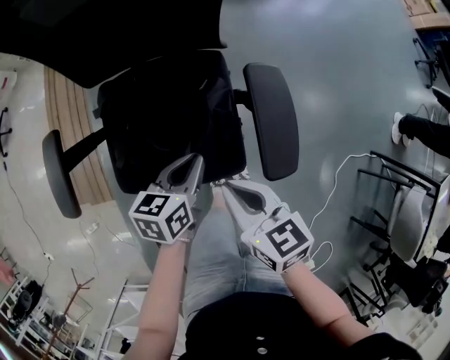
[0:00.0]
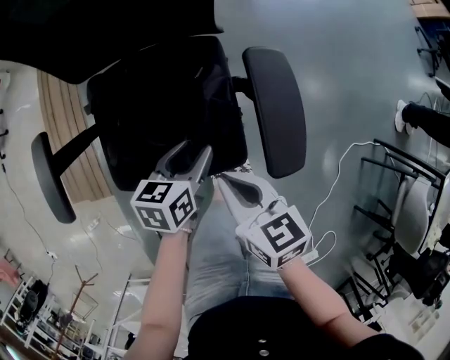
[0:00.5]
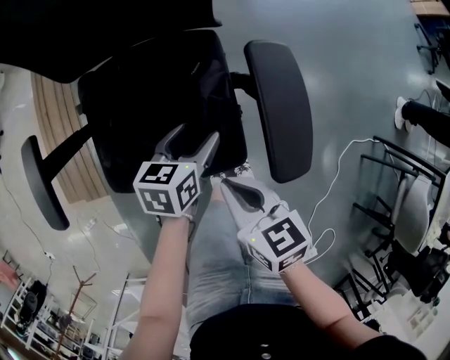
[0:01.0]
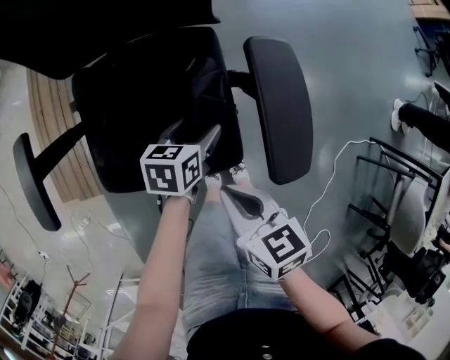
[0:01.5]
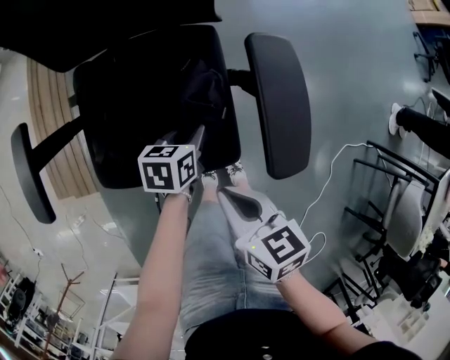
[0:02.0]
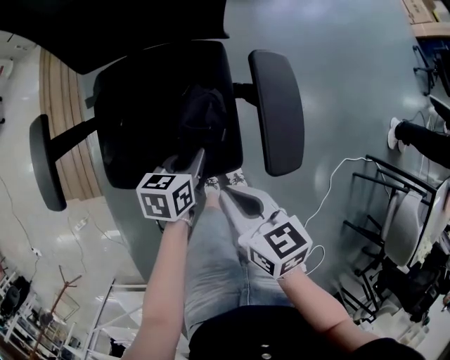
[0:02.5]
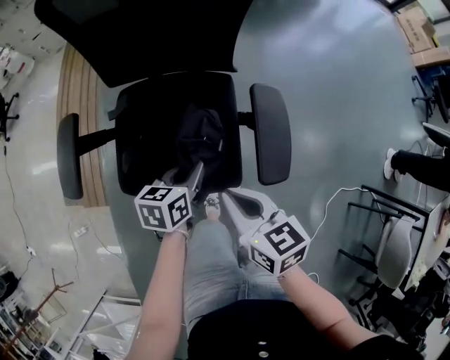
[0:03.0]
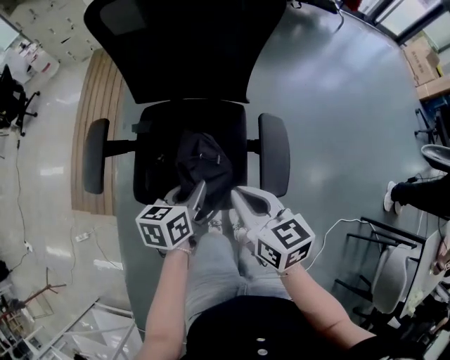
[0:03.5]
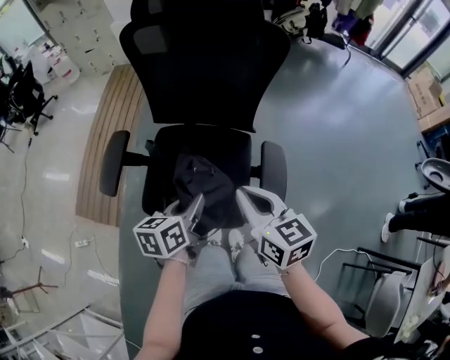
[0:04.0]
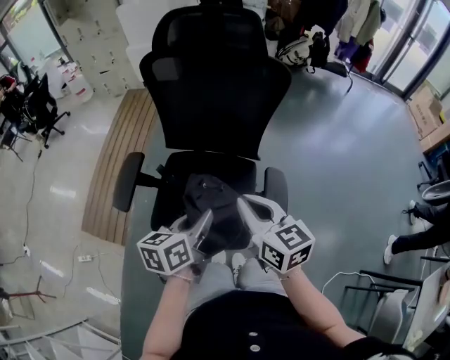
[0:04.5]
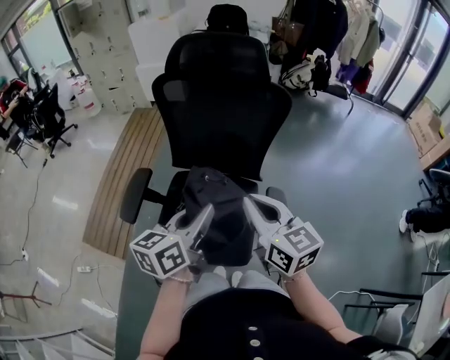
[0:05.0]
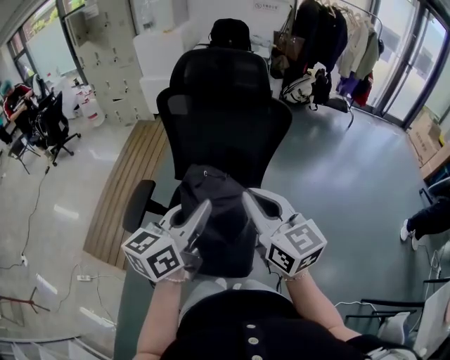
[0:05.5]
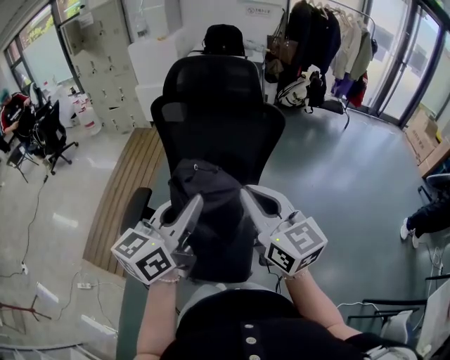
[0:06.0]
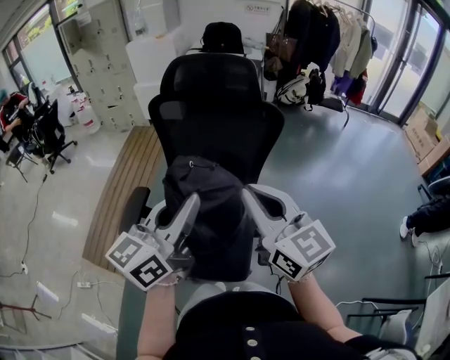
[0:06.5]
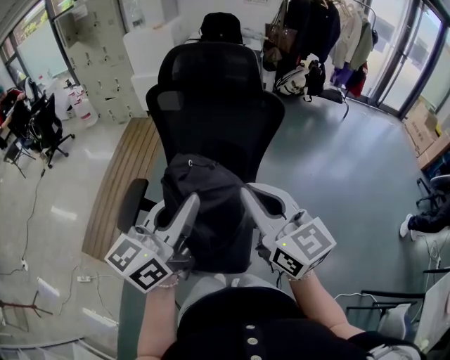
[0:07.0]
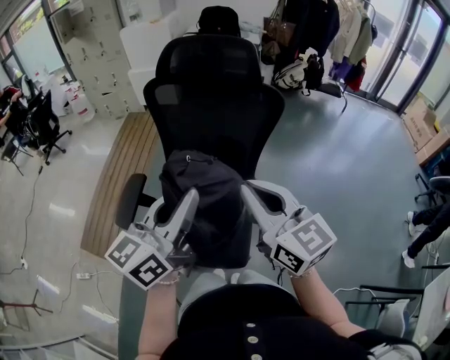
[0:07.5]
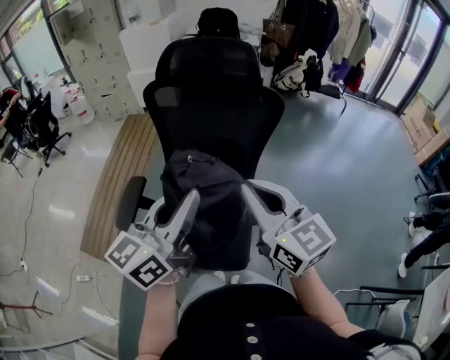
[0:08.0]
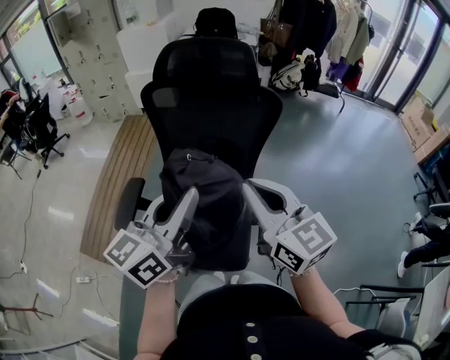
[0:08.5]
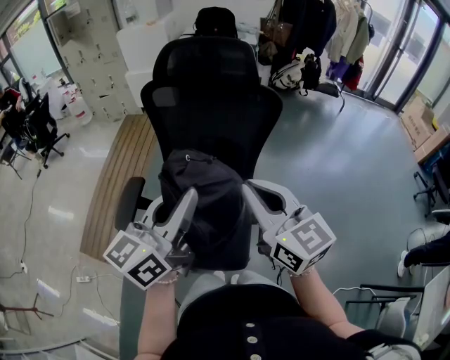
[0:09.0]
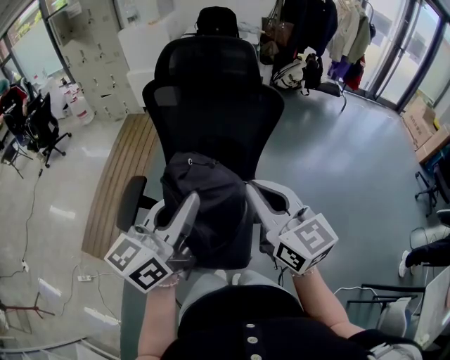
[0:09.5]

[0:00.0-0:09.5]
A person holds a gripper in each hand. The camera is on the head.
0:00.0 to 0:02.0: The right gripper travels downward by approximately 10 cm. Meanwhile the left gripper travels downward by approximately 15 cm, and opens, then closes once more.
0:02.0 to 0:04.0: Both grippers move upward, about 25 cm. The right gripper changes its angle by some 30 degrees; the left gripper changes its angle by roughly 30 degrees.
0:04.0 to 0:05.5: The two grippers go about 20 cm upward. The left gripper turns by roughly 30 degrees; the right gripper changes its angle by about 20 degrees.
0:07.5 to 0:09.5: The two grippers keep their place.

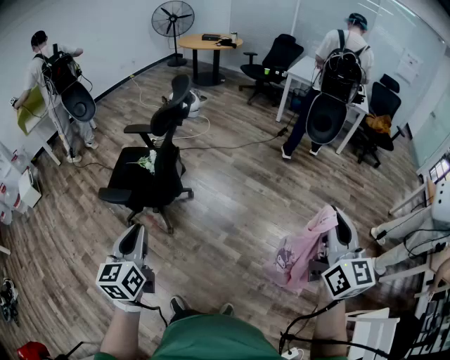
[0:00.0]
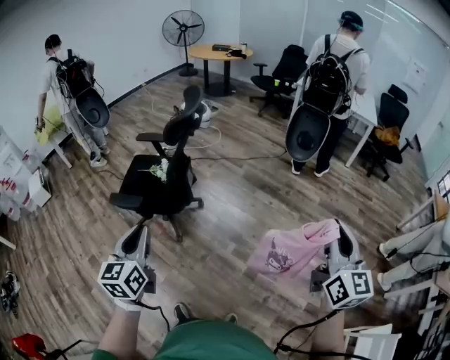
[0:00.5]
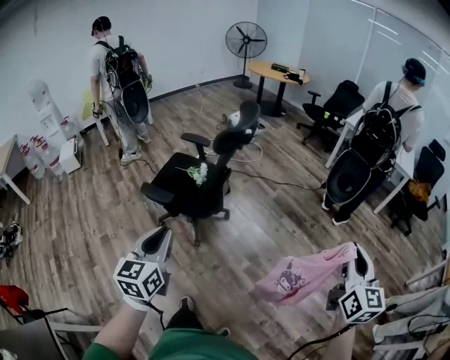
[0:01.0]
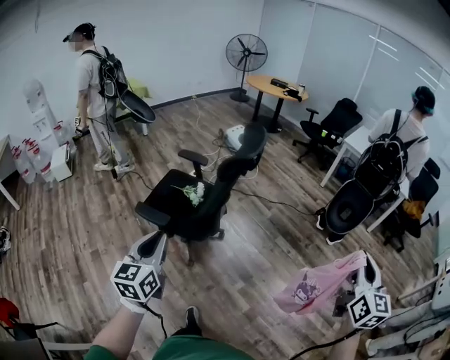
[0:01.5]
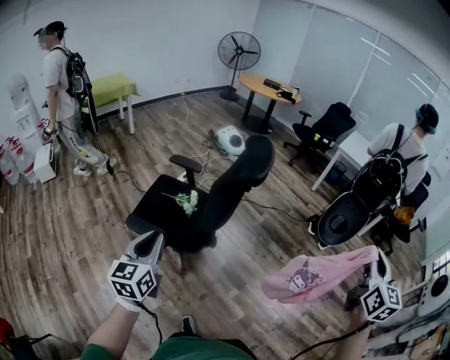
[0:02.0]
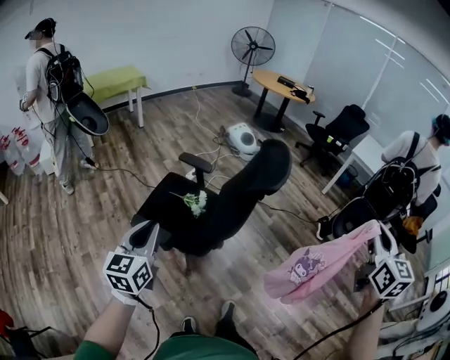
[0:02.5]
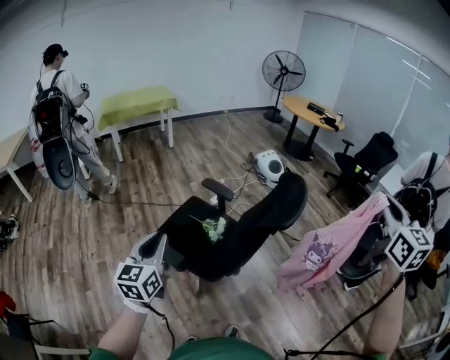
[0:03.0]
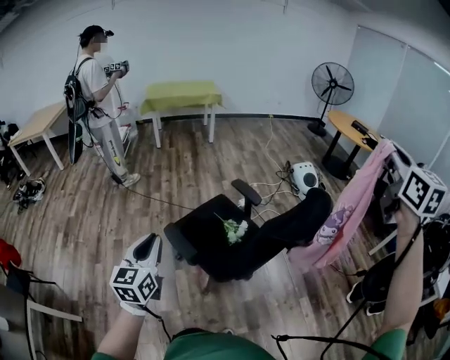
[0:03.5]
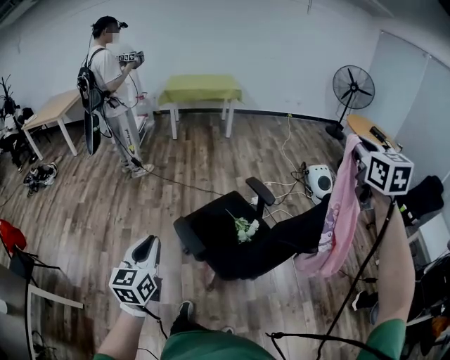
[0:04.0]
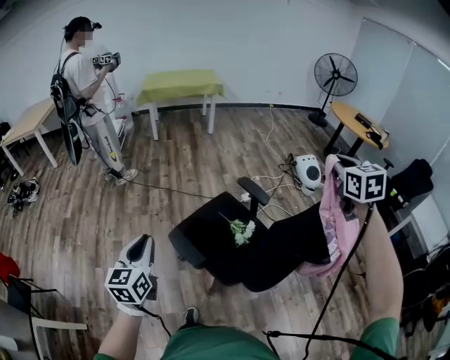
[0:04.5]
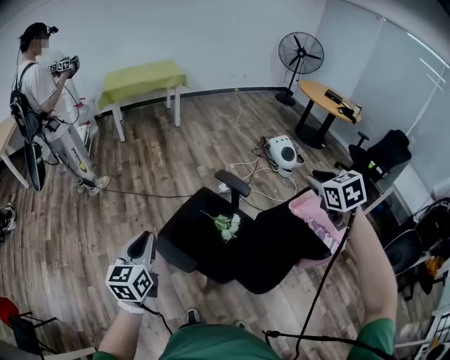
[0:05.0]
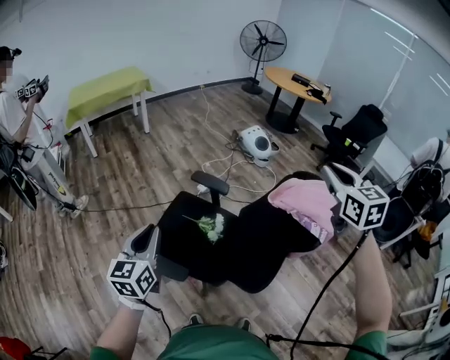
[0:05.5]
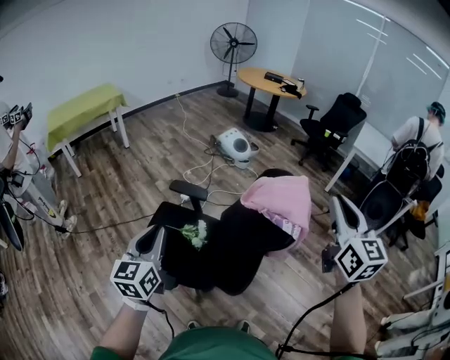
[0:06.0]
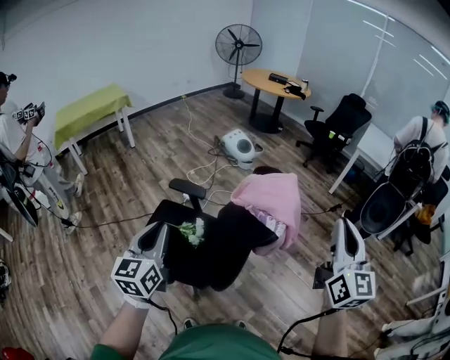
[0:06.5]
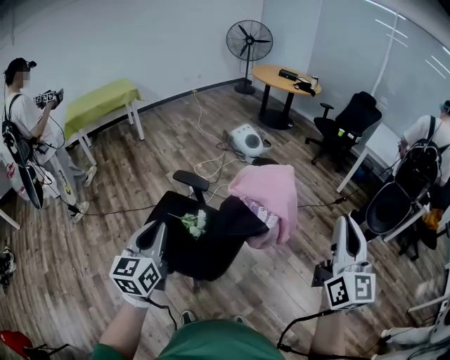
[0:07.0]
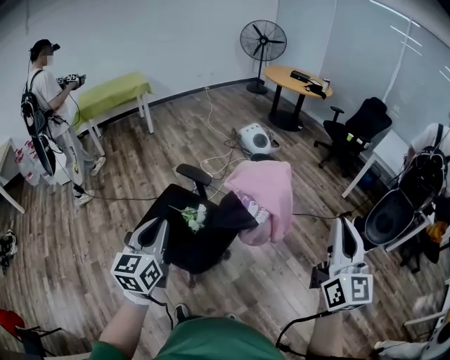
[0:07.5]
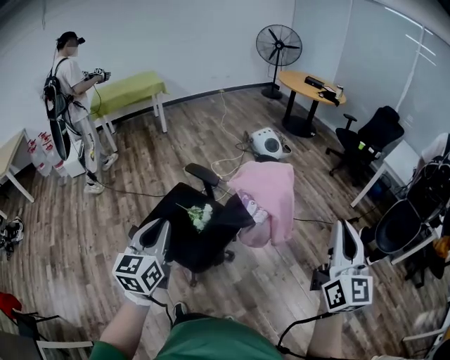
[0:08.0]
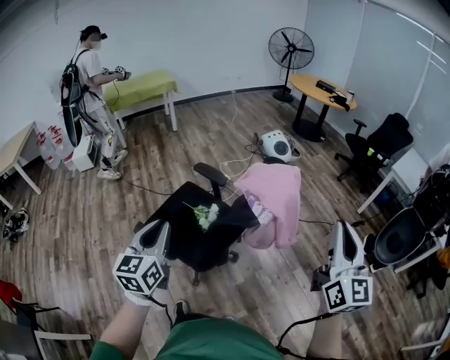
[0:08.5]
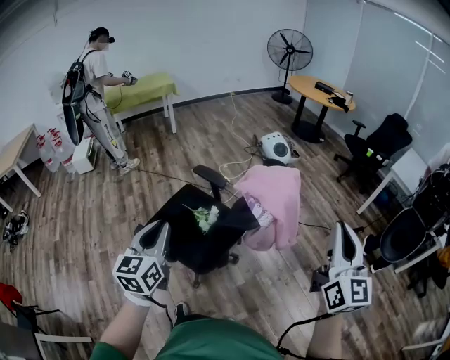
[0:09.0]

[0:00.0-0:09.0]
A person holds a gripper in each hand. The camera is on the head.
0:00.0 to 0:02.0: The right gripper is displaced forward by approximately 25 cm; the left gripper moves to the left and forward, some 25 cm.
0:02.0 to 0:04.5: The right gripper goes upward and returns, roughly 20 cm each way, and rotates roughly 50 degrees. The left gripper shifts by approximately 20 cm, and swivels some 40 degrees.
0:04.5 to 0:07.0: The left gripper ends up approximately 25 cm from where it was, and swivels some 30 degrees. Meanwhile the right gripper goes downward and returns, about 10 cm each way, and points its fingers about 30 degrees further upward.
0:07.0 to 0:09.0: The left gripper heads backward, covering approximately 5 cm, while the right gripper changes place by about 5 cm.

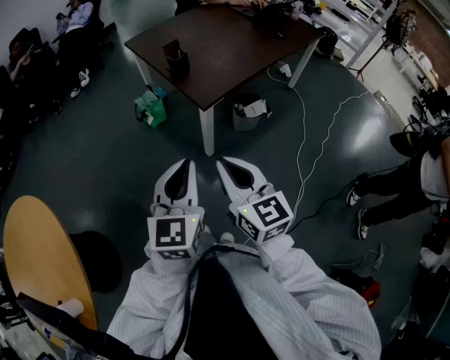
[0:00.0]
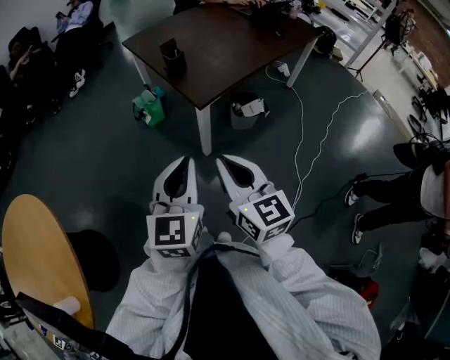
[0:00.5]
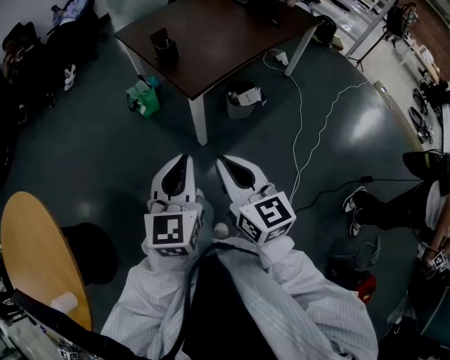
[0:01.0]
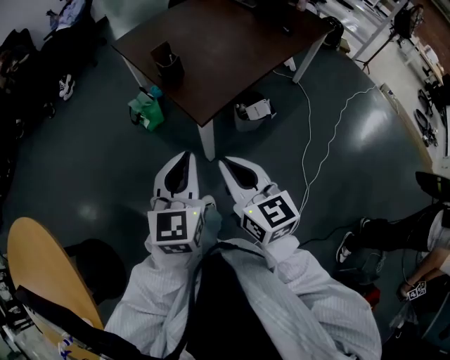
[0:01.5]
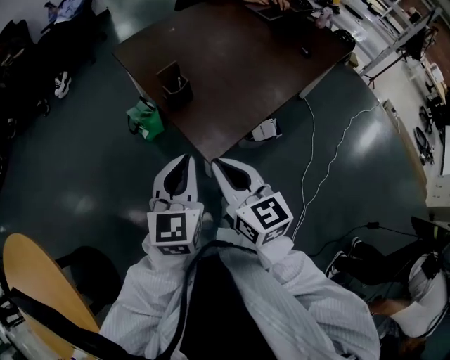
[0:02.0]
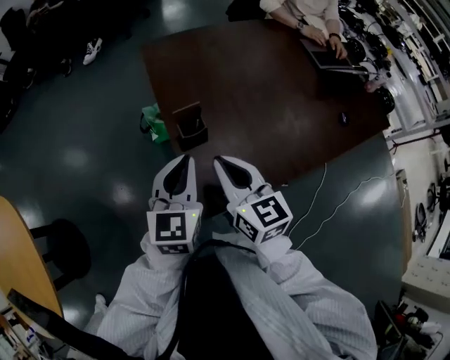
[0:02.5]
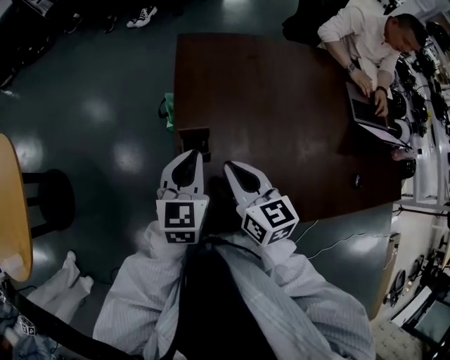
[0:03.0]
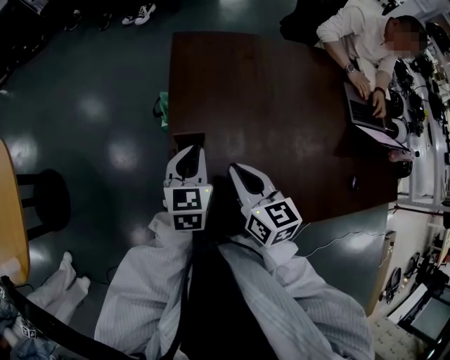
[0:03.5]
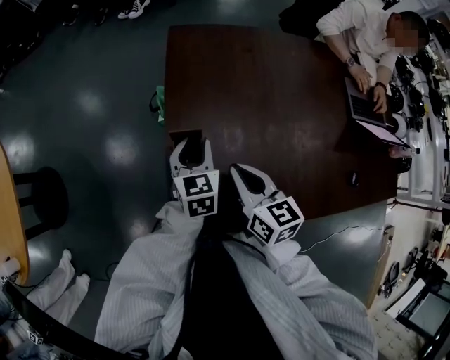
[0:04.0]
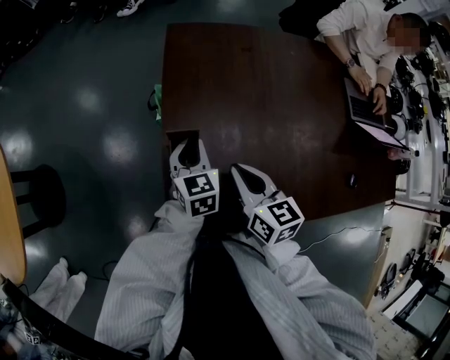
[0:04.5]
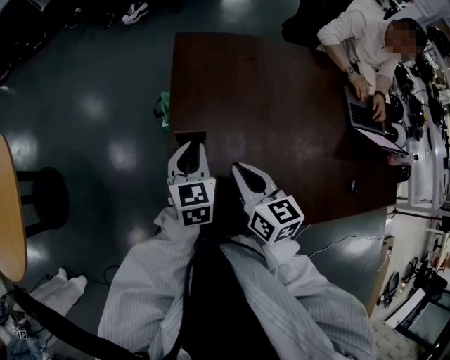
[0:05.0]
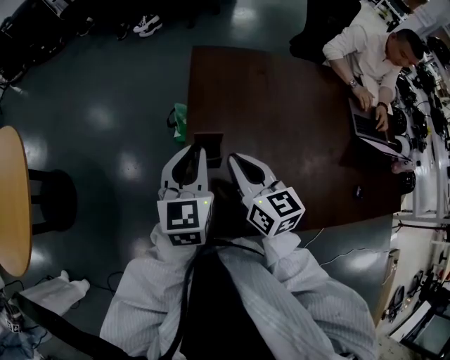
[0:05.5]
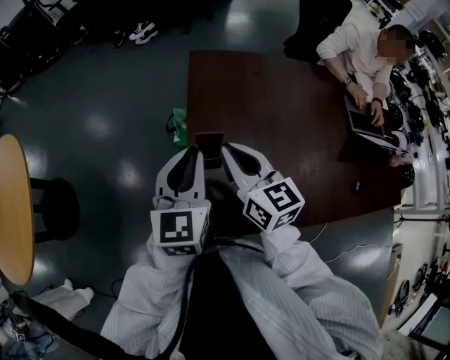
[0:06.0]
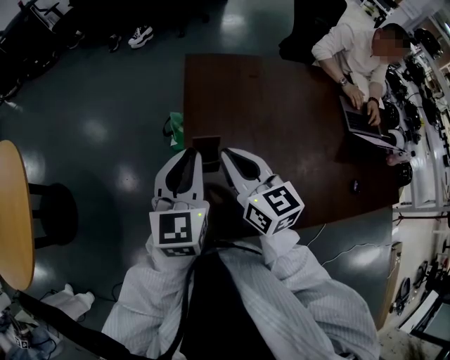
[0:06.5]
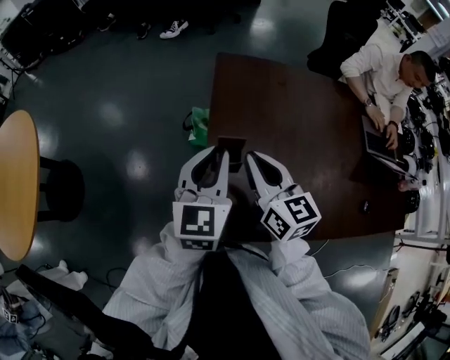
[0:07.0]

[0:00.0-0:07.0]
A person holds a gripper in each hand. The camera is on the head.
0:00.0 to 0:02.0: Both grippers move forward, approximately 35 cm.
0:02.0 to 0:03.5: The left gripper ends up approximately 40 cm from where it was, and changes its angle by roughly 40 degrees; the right gripper ends up about 40 cm from where it was, and rotates some 30 degrees.
0:03.5 to 0:05.0: There are only small adjustments of the grippers.
0:05.0 to 0:07.0: Both grippers travel together upward and to the left, roughly 15 cm.

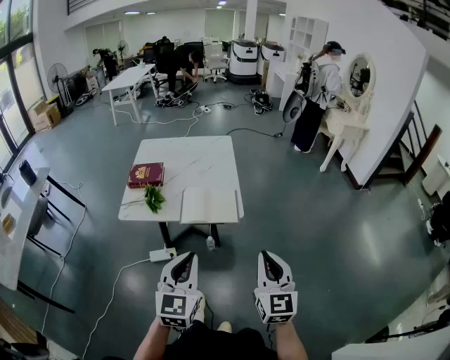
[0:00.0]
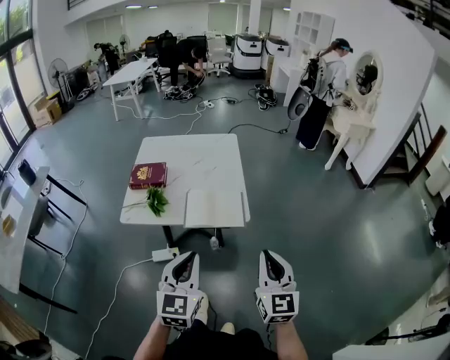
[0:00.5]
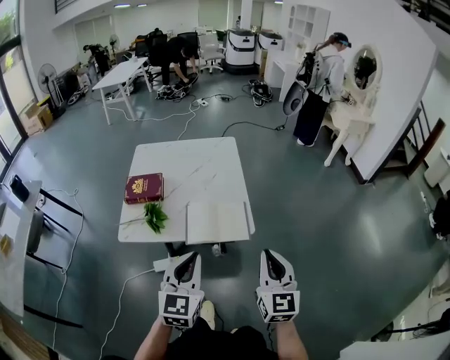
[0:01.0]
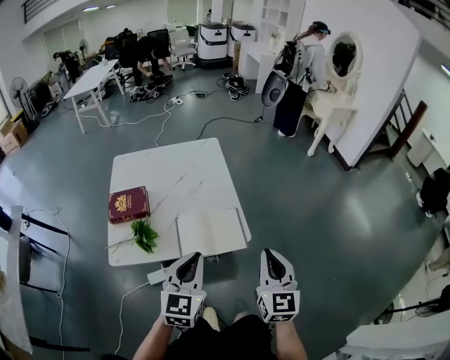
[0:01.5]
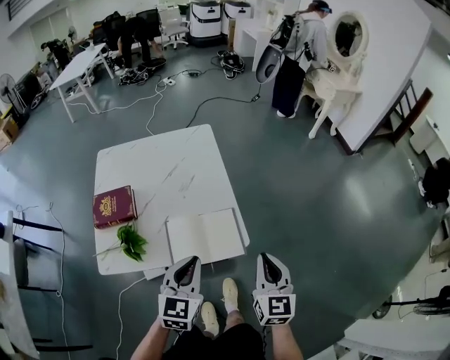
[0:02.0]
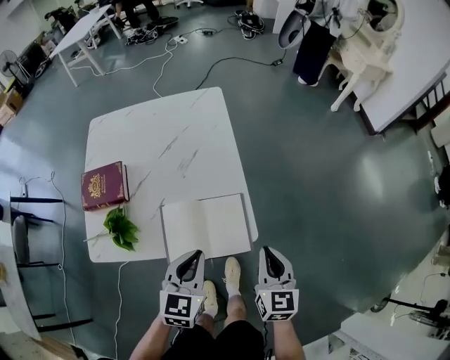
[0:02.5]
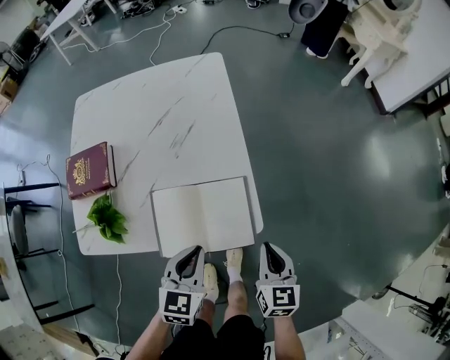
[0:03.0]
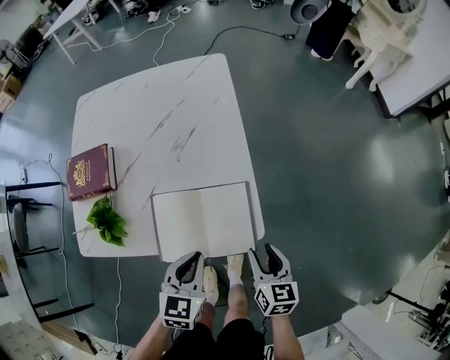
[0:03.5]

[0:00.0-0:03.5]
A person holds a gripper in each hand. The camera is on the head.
0:00.0 to 0:02.0: Both grippers move forward, roughly 30 cm.
0:02.0 to 0:03.5: The grippers both shift downward by about 20 cm. The right gripper swivels about 30 degrees, and opens.
